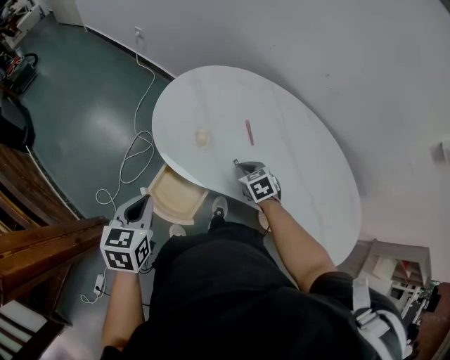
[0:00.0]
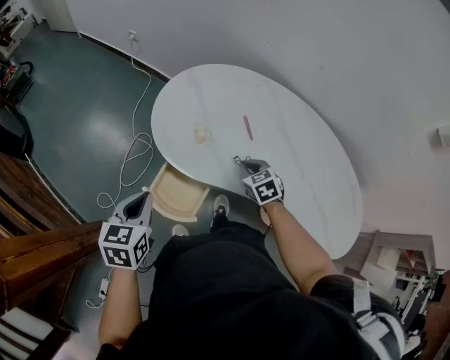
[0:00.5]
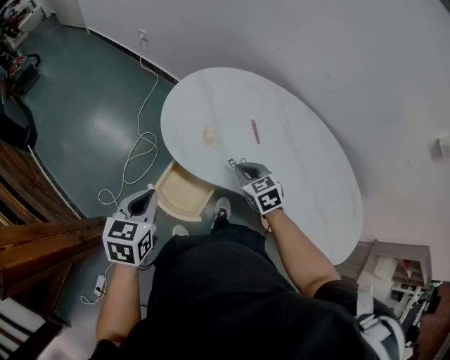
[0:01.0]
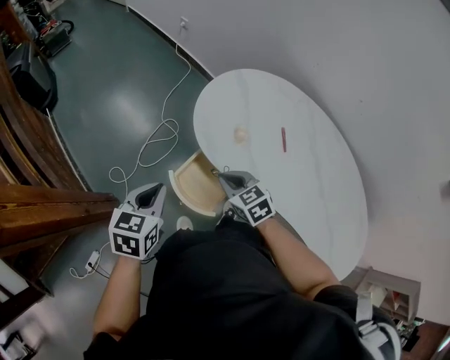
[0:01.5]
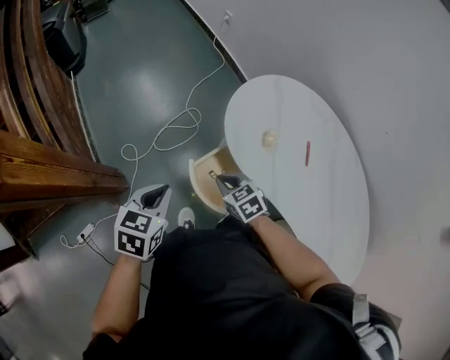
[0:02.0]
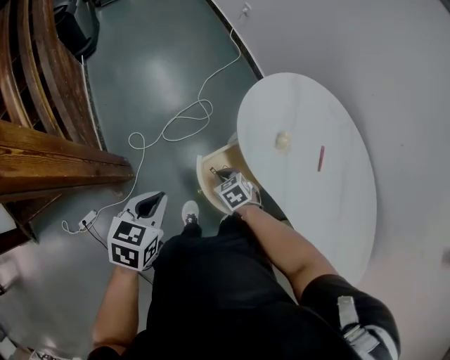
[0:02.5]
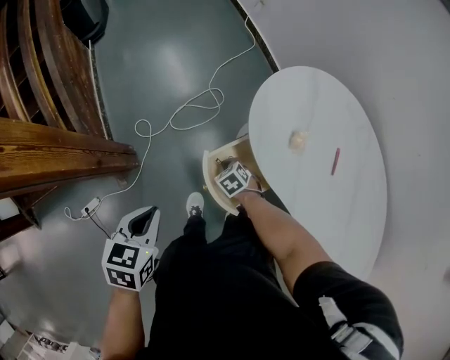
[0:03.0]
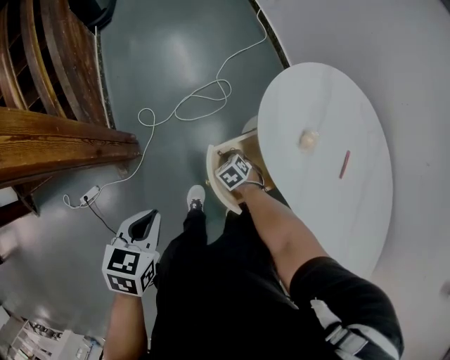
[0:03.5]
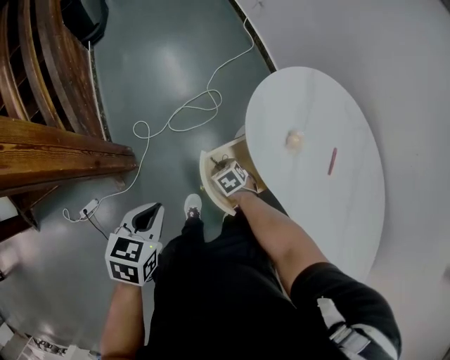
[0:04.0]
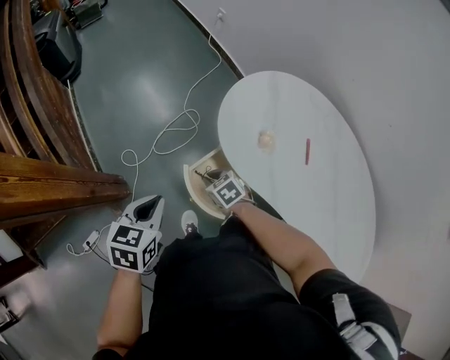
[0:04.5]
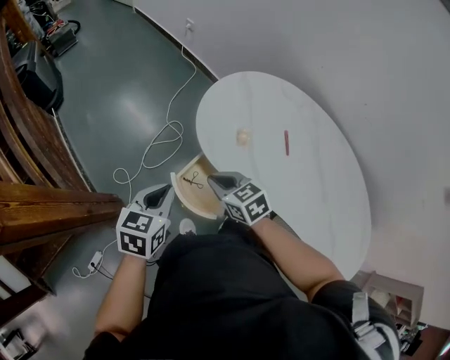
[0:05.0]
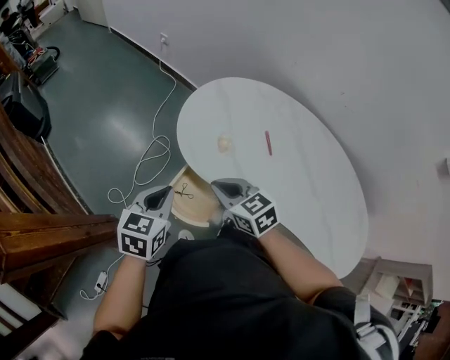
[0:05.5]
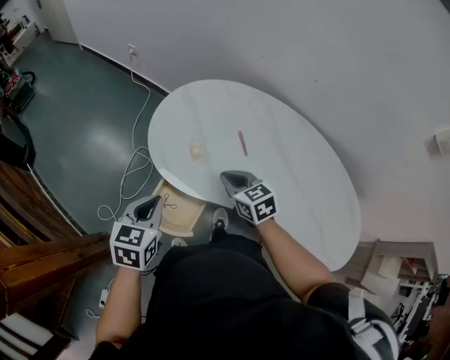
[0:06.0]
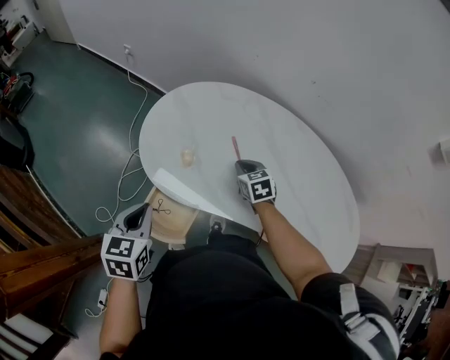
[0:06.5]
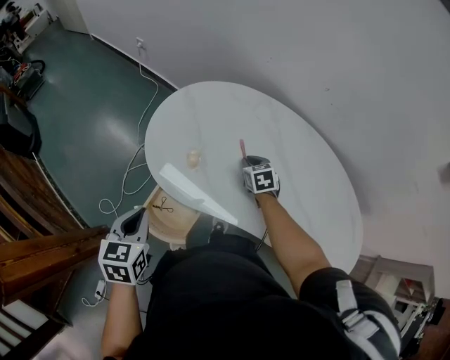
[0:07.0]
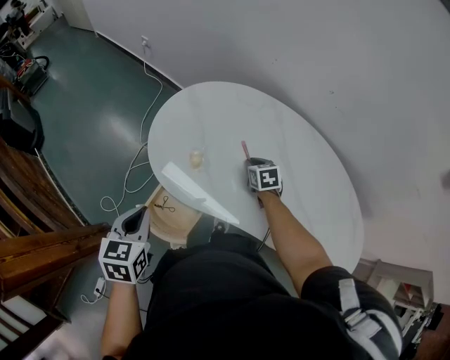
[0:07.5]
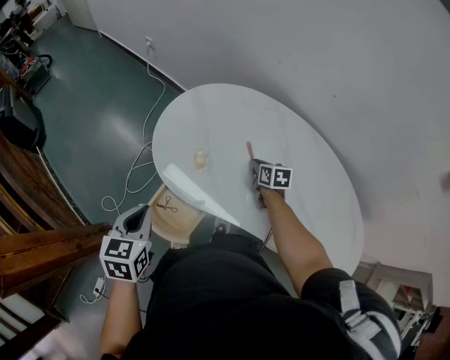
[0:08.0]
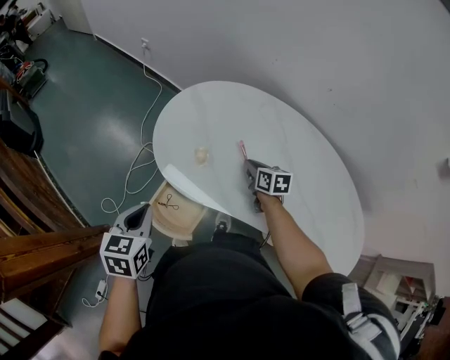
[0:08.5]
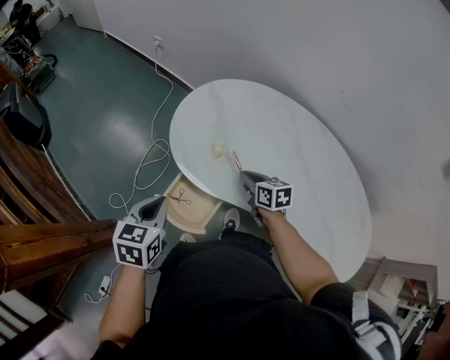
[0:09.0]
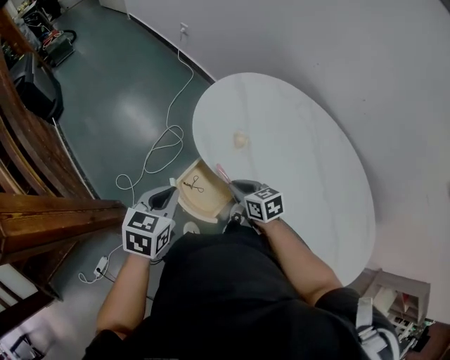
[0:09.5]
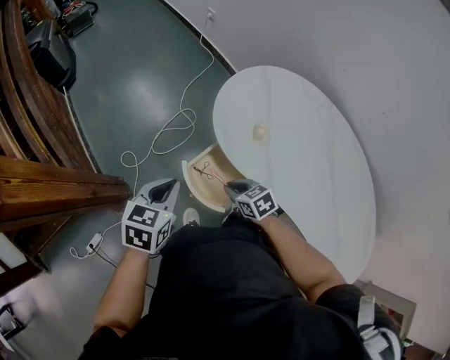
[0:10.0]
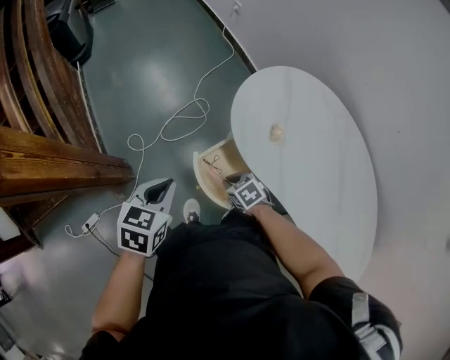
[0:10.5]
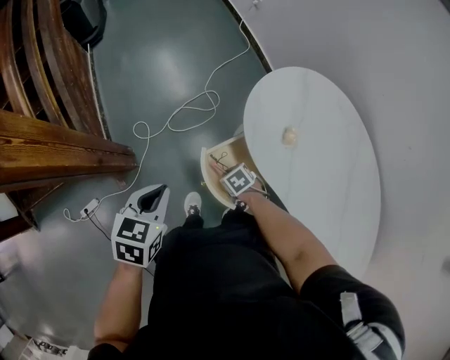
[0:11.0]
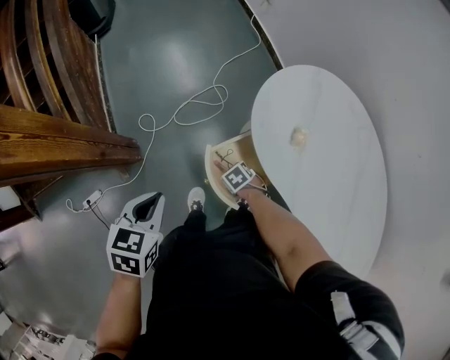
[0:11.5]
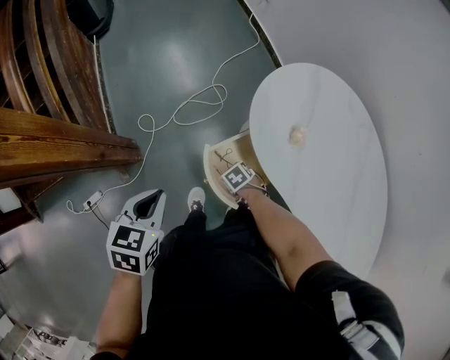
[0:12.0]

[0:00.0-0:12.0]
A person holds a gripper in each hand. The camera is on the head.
0:00.0 to 0:02.0: The left gripper changes place by roughly 15 cm. Meanwhile the right gripper shifts by approximately 25 cm, and changes its angle by some 30 degrees.
0:02.0 to 0:04.0: The right gripper travels downward by roughly 20 cm. The left gripper changes place by about 5 cm.
0:04.0 to 0:06.0: The left gripper ends up about 25 cm from where it was, and swivels roughly 40 degrees; the right gripper travels upward by approximately 30 cm, and rotates approximately 50 degrees.
0:06.0 to 0:08.0: The right gripper travels to the right, forward and downward by about 25 cm, and rotates roughly 30 degrees.
0:08.0 to 0:10.0: The left gripper travels to the left and backward by about 10 cm. Meanwhile the right gripper shifts about 35 cm to the left and backward, and changes its angle by about 50 degrees.
0:10.0 to 0:12.0: The right gripper travels downward by approximately 20 cm, and swivels roughly 30 degrees; the left gripper ends up about 10 cm from where it was.

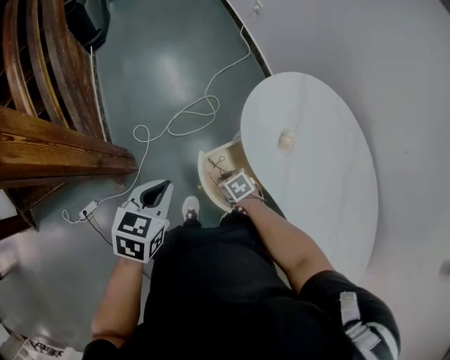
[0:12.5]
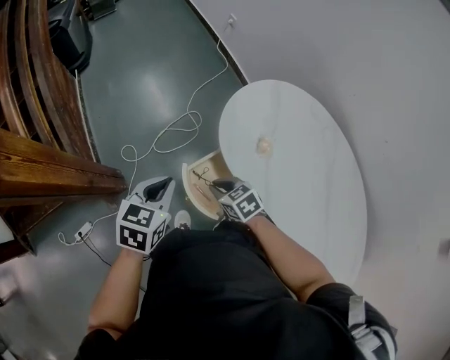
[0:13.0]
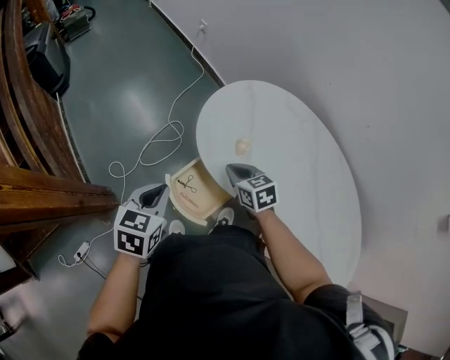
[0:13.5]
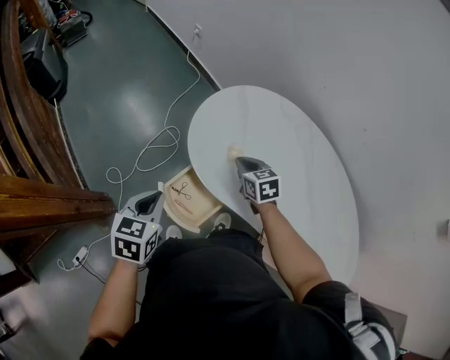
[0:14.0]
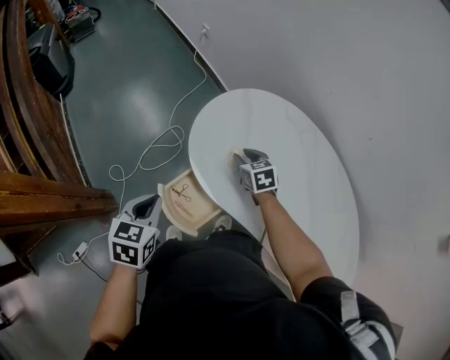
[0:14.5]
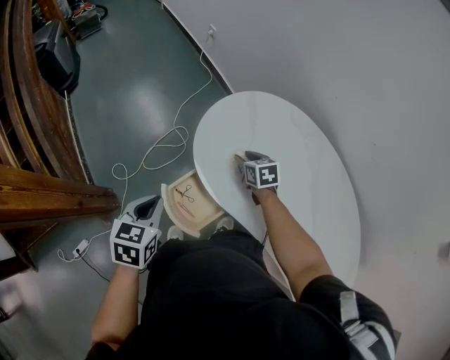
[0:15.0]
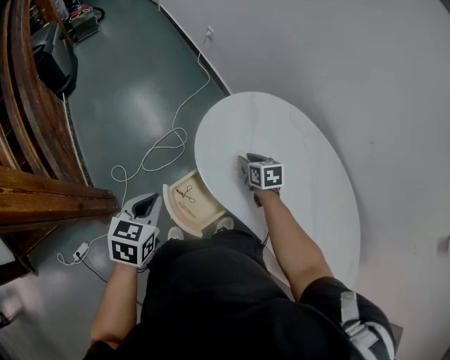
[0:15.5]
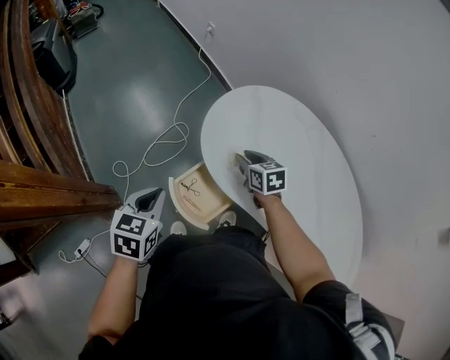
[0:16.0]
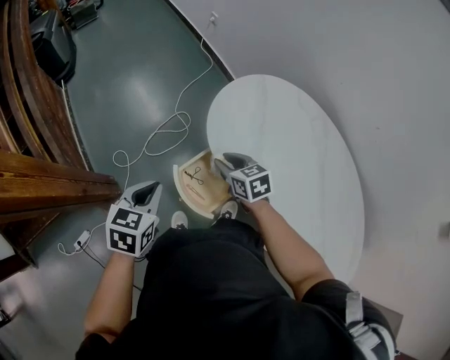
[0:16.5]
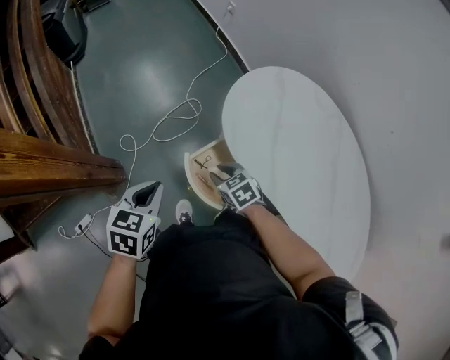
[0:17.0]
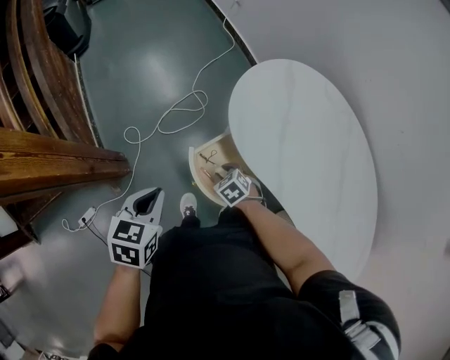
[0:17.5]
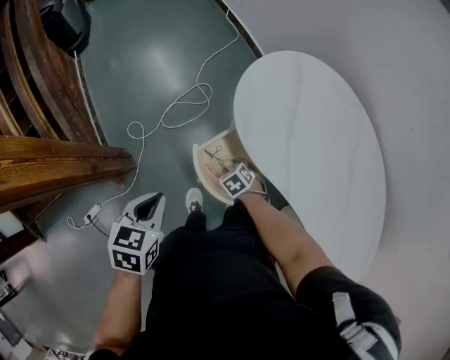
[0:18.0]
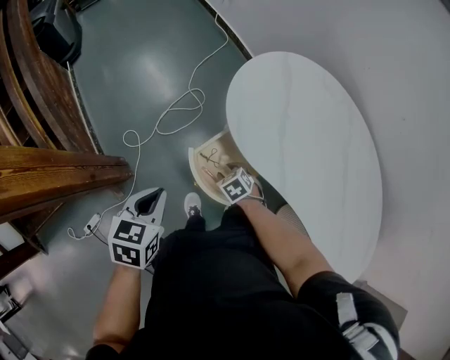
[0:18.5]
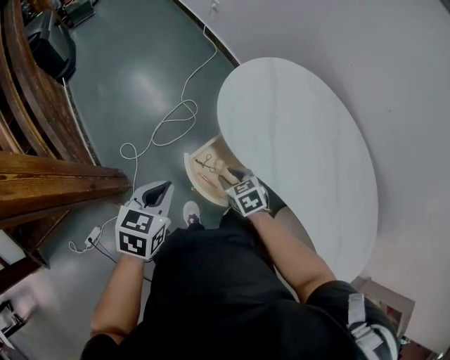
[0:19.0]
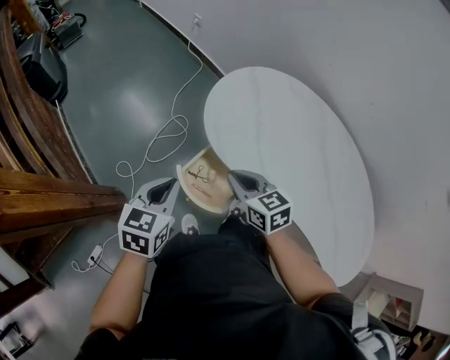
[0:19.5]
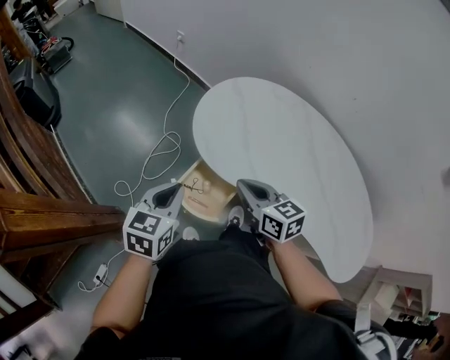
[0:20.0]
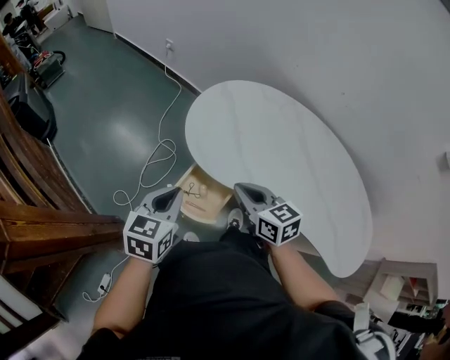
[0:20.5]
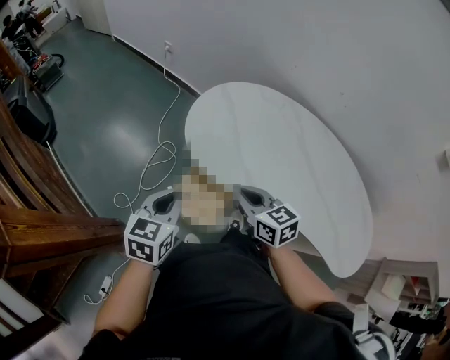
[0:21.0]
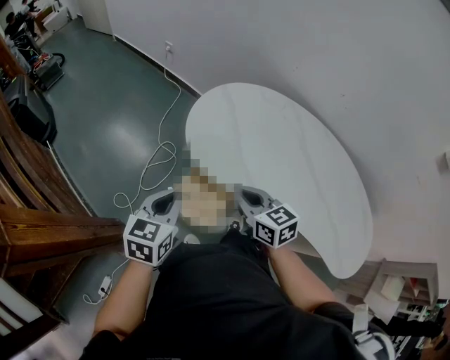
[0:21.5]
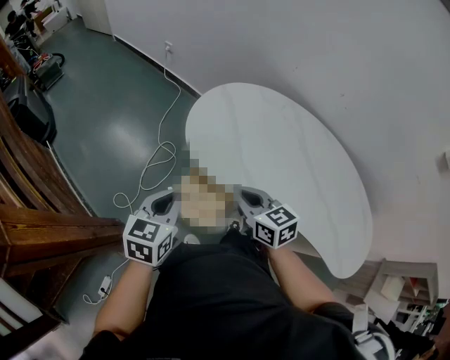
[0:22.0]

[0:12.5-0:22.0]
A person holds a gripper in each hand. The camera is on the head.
0:12.5 to 0:14.5: The left gripper moves approximately 10 cm, while the right gripper ends up some 35 cm from where it was, and turns by about 40 degrees.
0:14.5 to 0:16.5: The right gripper moves to the left and backward, some 15 cm. Meanwhile the left gripper shifts approximately 5 cm to the left.
0:16.5 to 0:18.0: The right gripper shifts about 20 cm downward, and rotates approximately 30 degrees, while the left gripper shifts roughly 5 cm backward.
0:18.0 to 0:20.0: The left gripper travels to the right, upward and forward by approximately 15 cm, and swivels some 30 degrees. The right gripper shifts roughly 35 cm upward, tips its fingers upward by roughly 50 degrees, and closes its fingers.
0:20.0 to 0:22.0: The grippers move only a little.

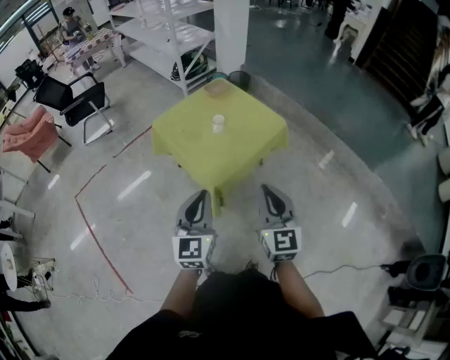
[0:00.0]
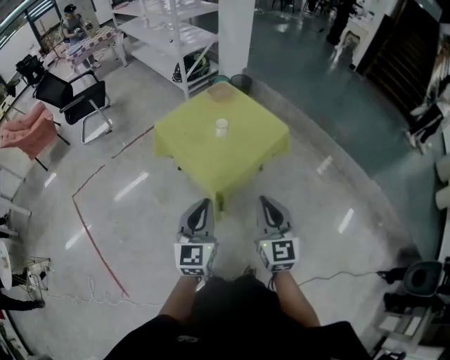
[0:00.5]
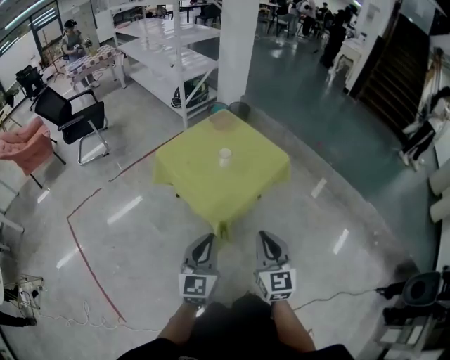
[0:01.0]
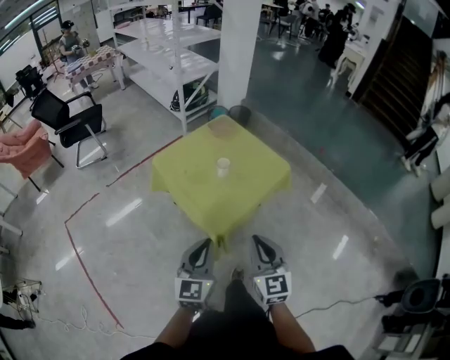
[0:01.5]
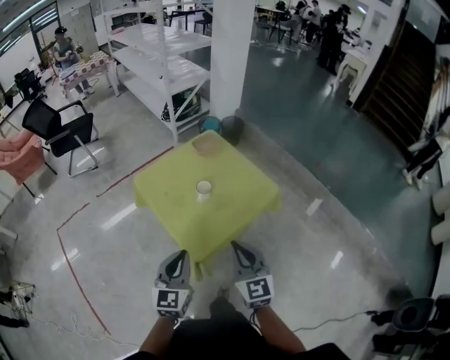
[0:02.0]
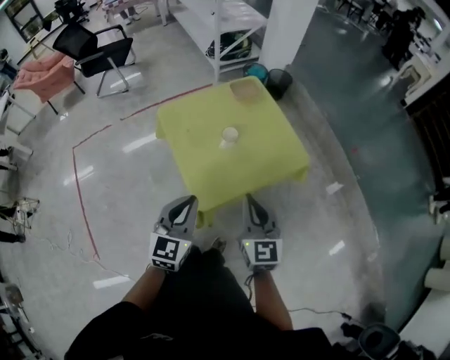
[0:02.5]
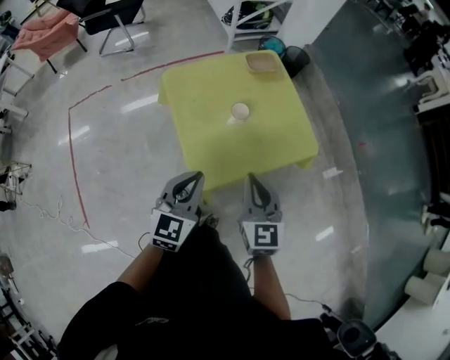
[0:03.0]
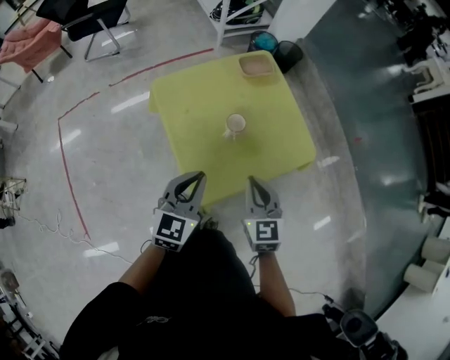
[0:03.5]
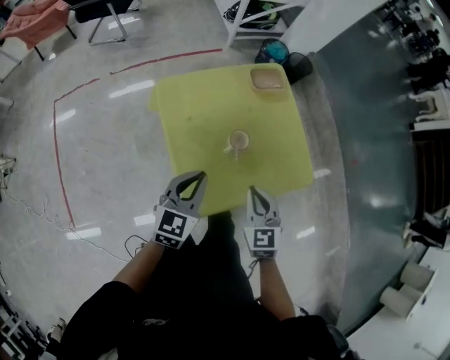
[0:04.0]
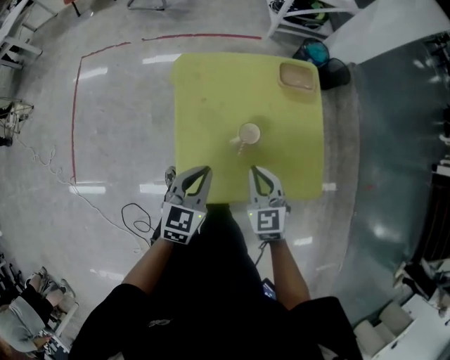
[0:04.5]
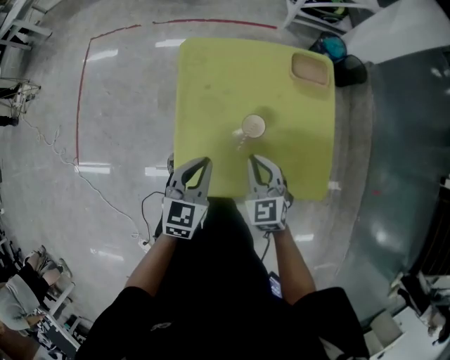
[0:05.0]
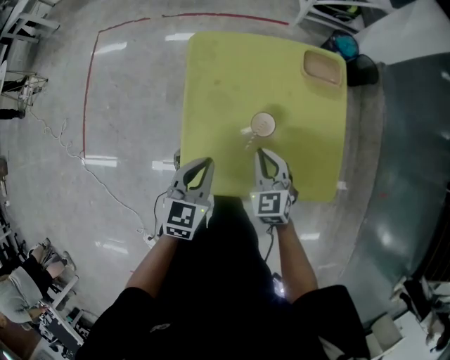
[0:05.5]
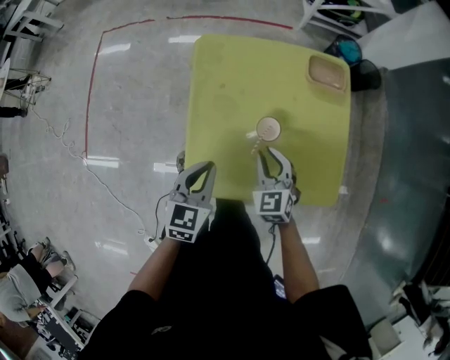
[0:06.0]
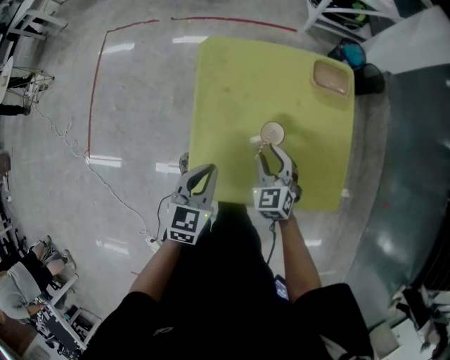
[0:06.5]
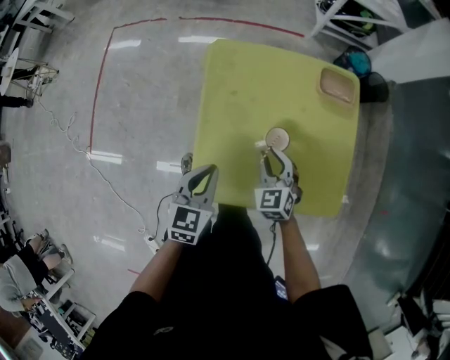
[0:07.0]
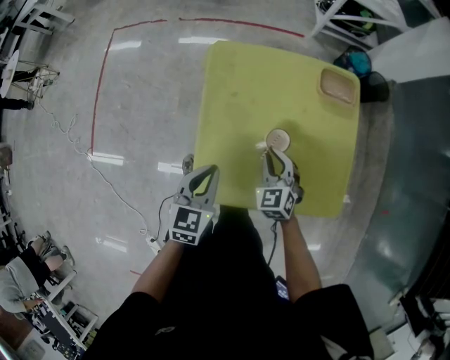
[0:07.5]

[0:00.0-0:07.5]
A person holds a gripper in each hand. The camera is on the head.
0:00.0 to 0:02.0: The right gripper travels forward by roughly 20 cm. Meanwhile the left gripper moves forward and downward, approximately 15 cm.
0:02.0 to 0:04.0: Both grippers move forward and downward, about 25 cm. The right gripper rotates some 30 degrees.
0:04.0 to 0:05.5: Both grippers travel together downward, about 10 cm. The left gripper swivels about 30 degrees. Meanwhile the right gripper swivels some 30 degrees.
0:05.5 to 0:07.5: The right gripper changes place by approximately 5 cm, and opens and closes again.
